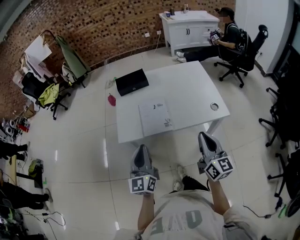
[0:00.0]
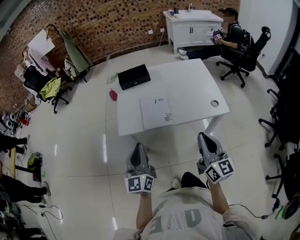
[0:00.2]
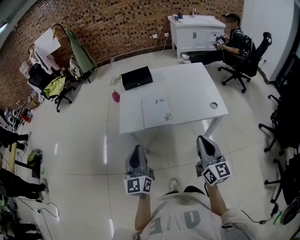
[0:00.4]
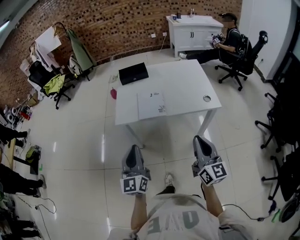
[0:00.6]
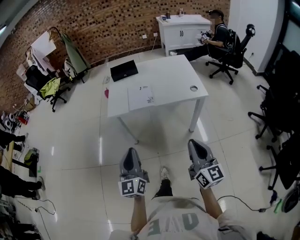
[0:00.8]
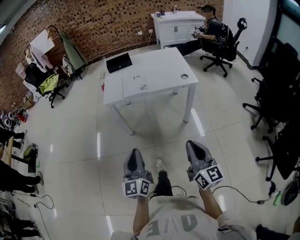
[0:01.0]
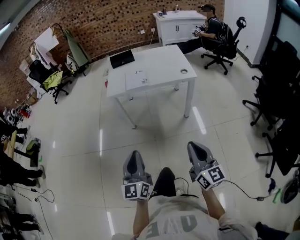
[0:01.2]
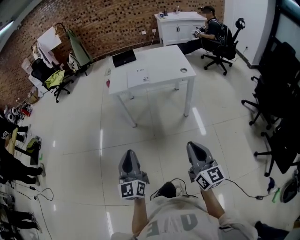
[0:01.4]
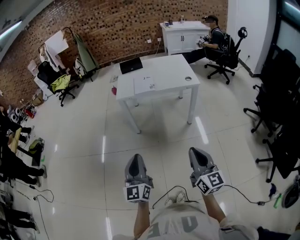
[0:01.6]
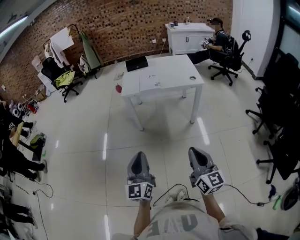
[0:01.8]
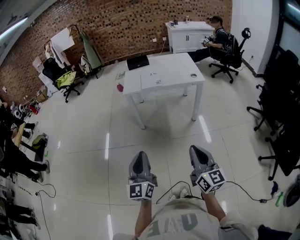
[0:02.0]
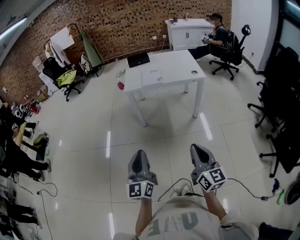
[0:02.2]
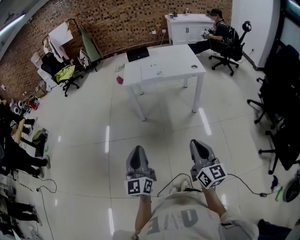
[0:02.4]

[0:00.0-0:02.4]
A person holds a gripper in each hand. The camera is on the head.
0:00.0 to 0:01.2: Both grippers are carried backward, roughly 40 cm.
0:01.2 to 0:02.4: The grippers both shift backward and to the left by approximately 15 cm.

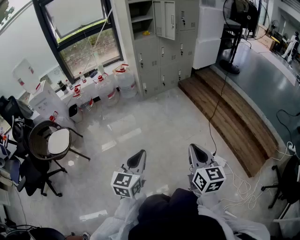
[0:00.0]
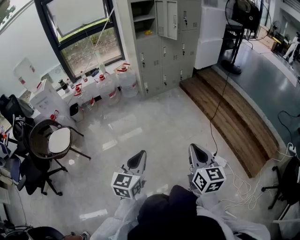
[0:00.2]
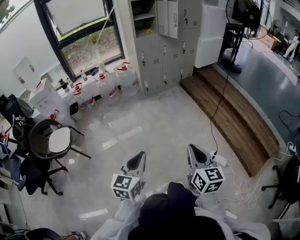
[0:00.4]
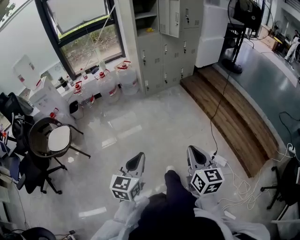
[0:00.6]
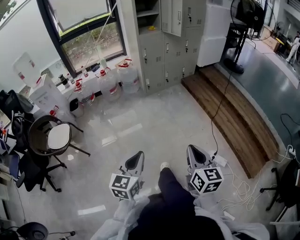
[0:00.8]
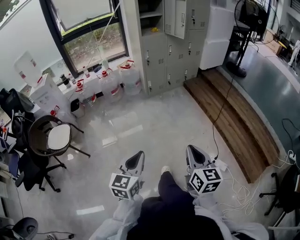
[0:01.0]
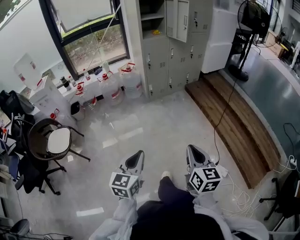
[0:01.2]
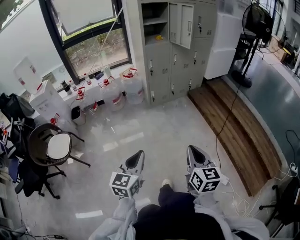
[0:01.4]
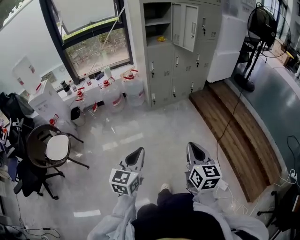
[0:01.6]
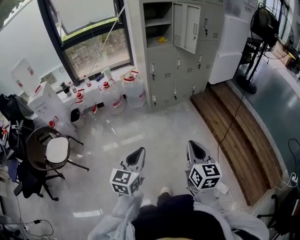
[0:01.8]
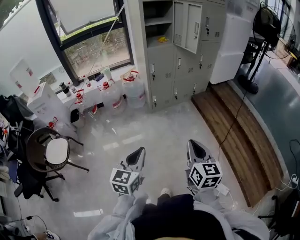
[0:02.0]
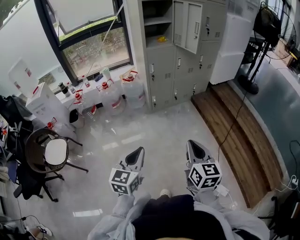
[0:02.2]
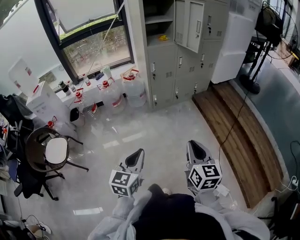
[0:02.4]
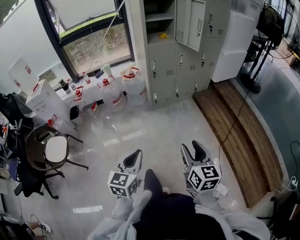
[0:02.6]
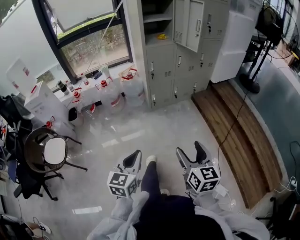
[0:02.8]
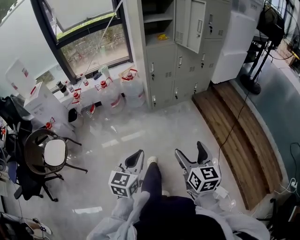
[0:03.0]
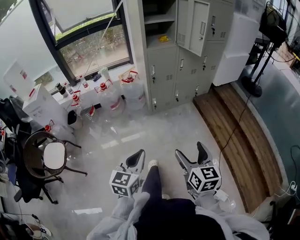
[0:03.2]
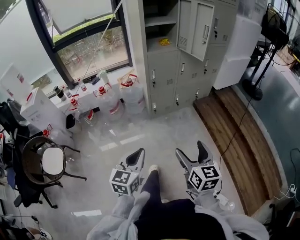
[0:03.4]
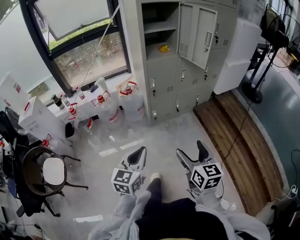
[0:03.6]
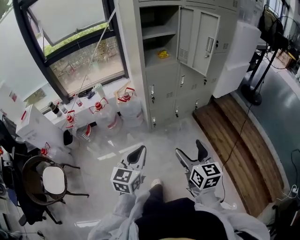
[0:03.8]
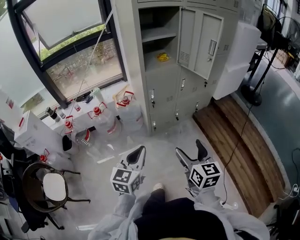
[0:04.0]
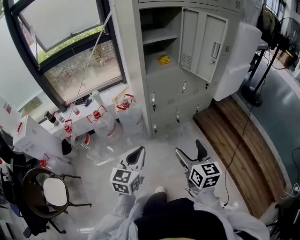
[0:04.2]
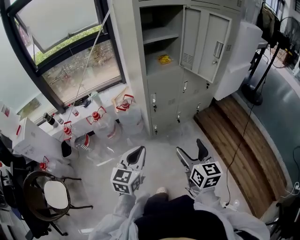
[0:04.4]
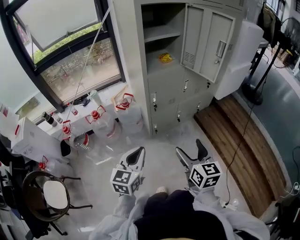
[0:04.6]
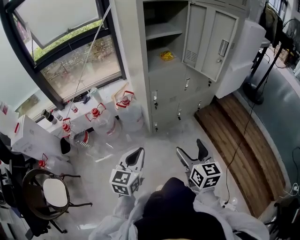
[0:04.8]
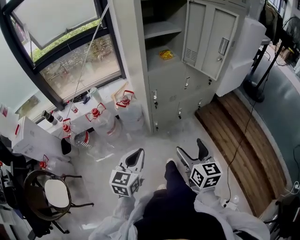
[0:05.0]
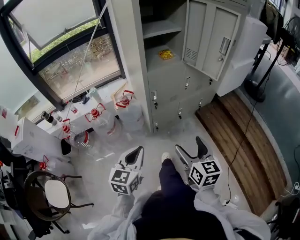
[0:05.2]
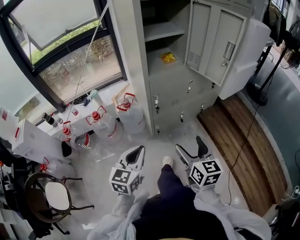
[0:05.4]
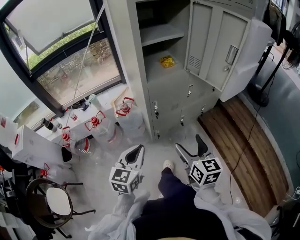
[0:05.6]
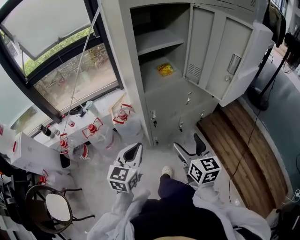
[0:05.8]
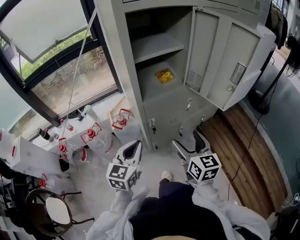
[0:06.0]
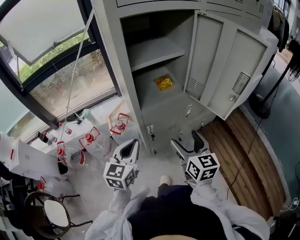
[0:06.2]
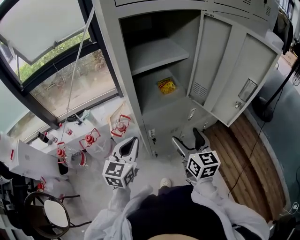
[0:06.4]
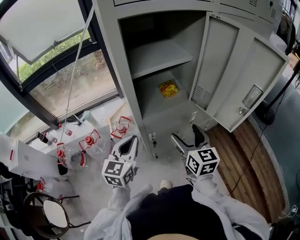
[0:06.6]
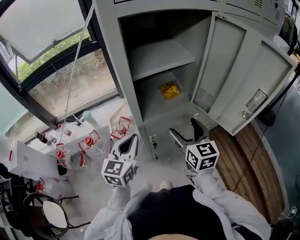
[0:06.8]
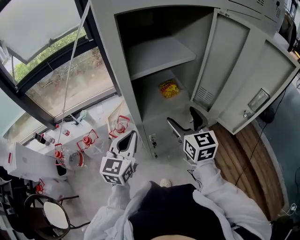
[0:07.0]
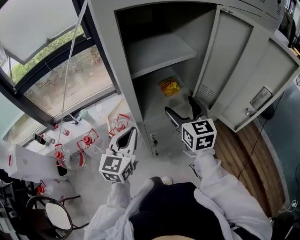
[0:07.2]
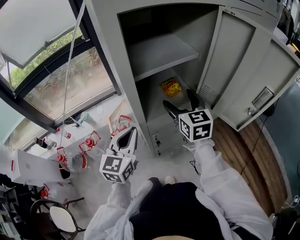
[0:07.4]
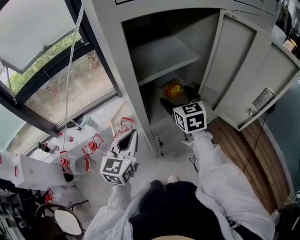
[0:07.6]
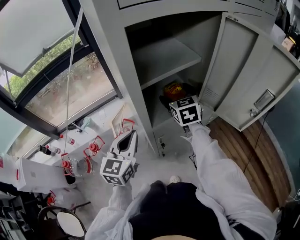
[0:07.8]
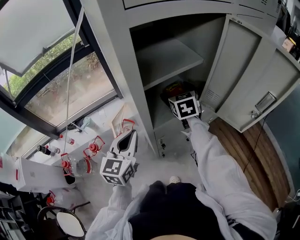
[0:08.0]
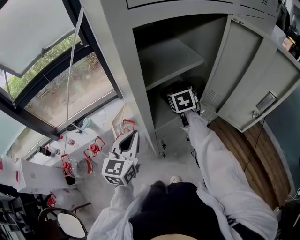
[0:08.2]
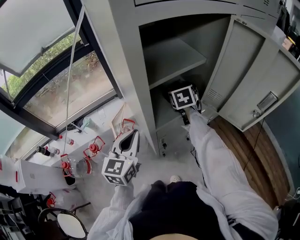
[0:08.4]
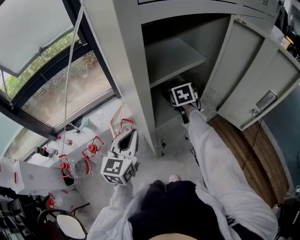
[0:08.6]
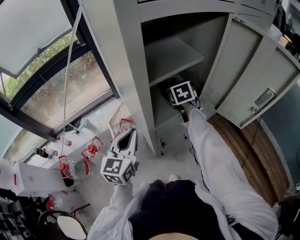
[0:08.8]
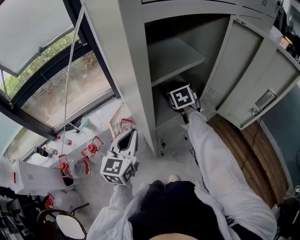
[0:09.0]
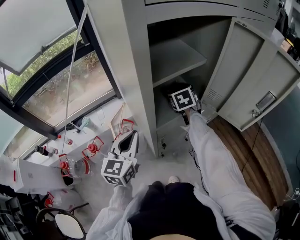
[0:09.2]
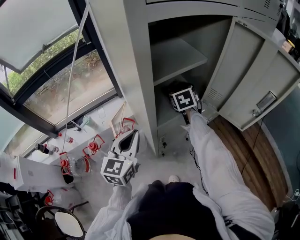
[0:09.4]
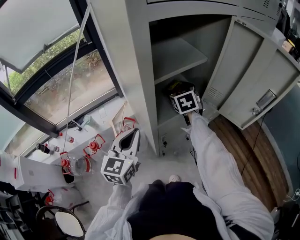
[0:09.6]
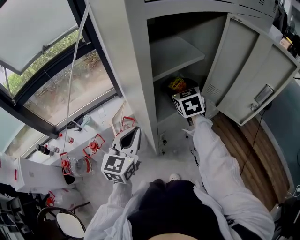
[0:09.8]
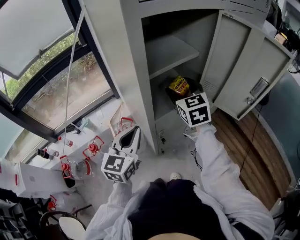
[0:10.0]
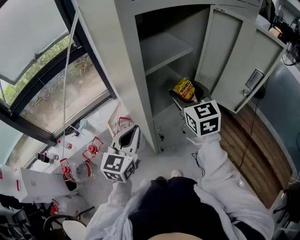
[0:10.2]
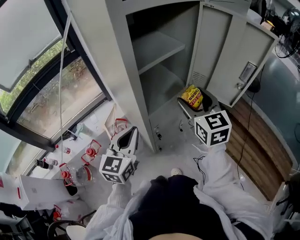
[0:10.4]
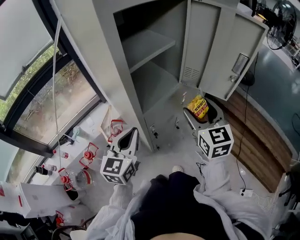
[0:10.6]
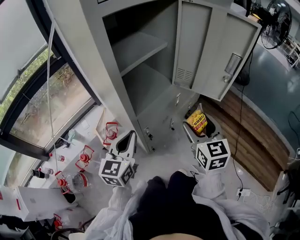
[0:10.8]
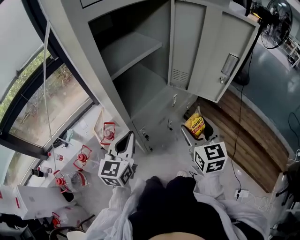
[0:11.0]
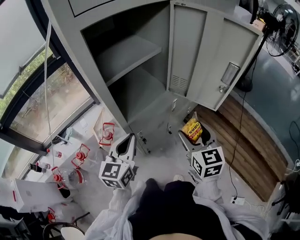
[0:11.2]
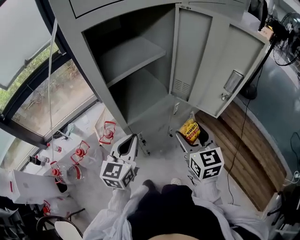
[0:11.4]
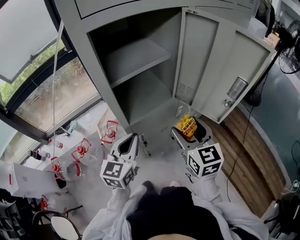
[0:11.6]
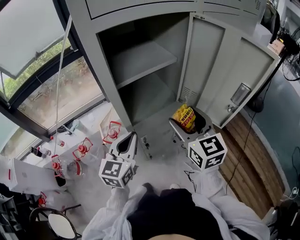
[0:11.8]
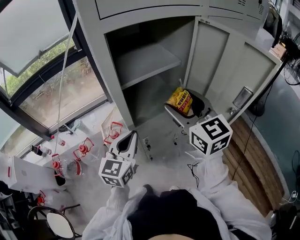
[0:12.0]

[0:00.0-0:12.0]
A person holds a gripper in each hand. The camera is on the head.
0:00.0 to 0:01.6: Both grippers move forward, approximately 20 cm.
0:01.6 to 0:03.0: Both grippers travel together forward, about 10 cm. The right gripper opens its fingers.
0:03.0 to 0:04.4: Both grippers travel together forward, about 35 cm.
0:04.4 to 0:06.0: The two grippers go approximately 25 cm forward.
0:06.0 to 0:07.6: The right gripper heads forward, covering some 30 cm, while the left gripper is displaced forward by roughly 15 cm.
0:07.6 to 0:09.0: The right gripper shifts approximately 10 cm forward and downward, and rotates approximately 20 degrees.
0:09.0 to 0:10.4: The right gripper heads backward, upward and to the right, covering approximately 25 cm, and changes its angle by roughly 30 degrees. Meanwhile the left gripper changes place by some 5 cm.
0:10.4 to 0:12.0: The left gripper goes approximately 5 cm to the right. The right gripper shifts about 5 cm upward, and turns by roughly 20 degrees.

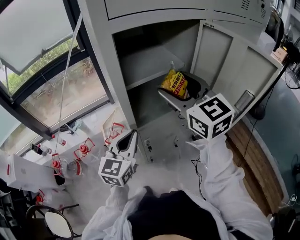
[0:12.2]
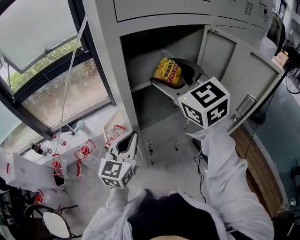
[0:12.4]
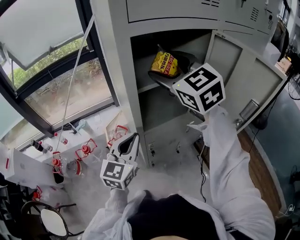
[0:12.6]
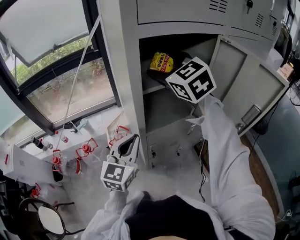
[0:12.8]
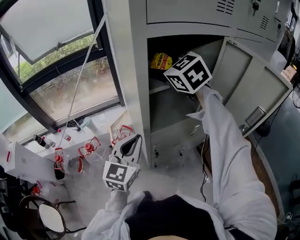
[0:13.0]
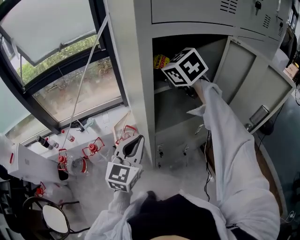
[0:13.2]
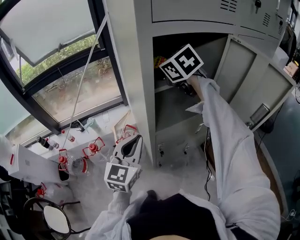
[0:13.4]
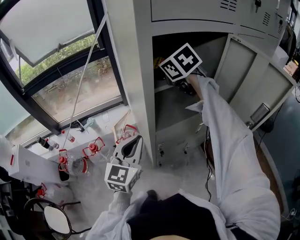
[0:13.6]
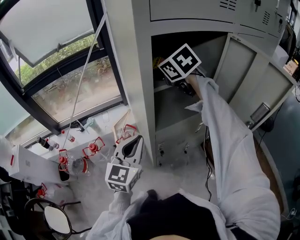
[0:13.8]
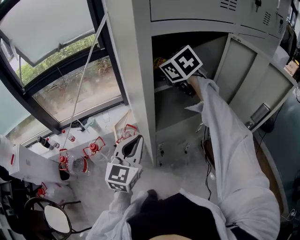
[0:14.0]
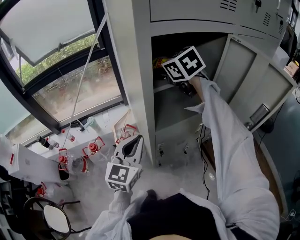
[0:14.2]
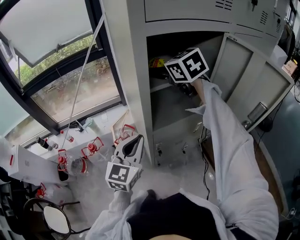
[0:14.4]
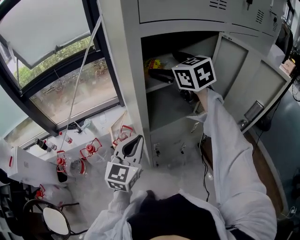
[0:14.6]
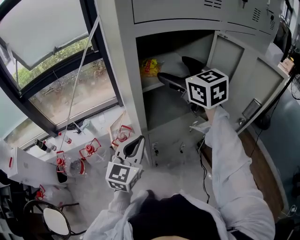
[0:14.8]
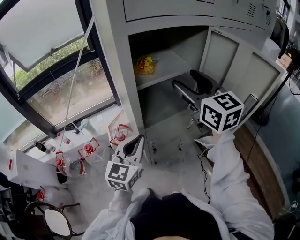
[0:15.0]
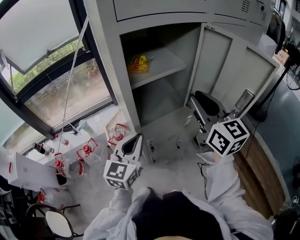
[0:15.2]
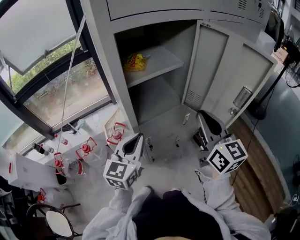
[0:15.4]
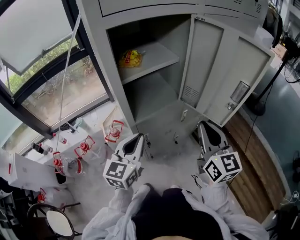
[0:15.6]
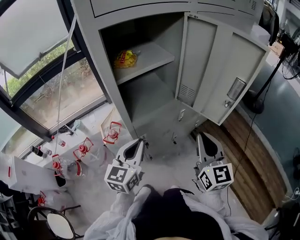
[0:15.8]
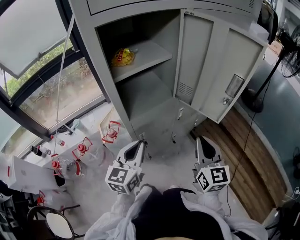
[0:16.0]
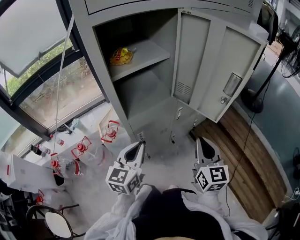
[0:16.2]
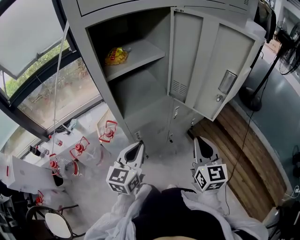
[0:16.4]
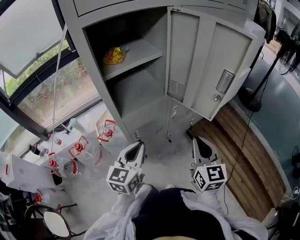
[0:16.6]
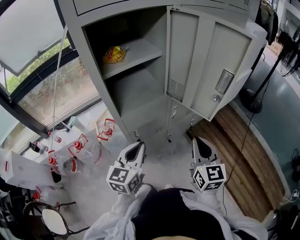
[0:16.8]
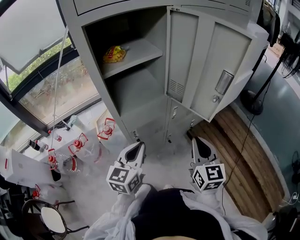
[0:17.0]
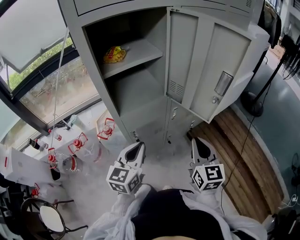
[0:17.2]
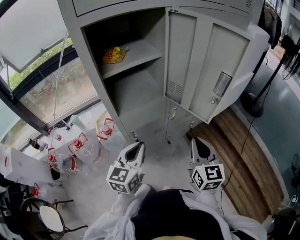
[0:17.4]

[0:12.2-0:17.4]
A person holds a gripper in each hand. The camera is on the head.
0:12.2 to 0:14.0: The right gripper goes some 20 cm forward and to the left, and rotates roughly 30 degrees, while the left gripper shifts by roughly 5 cm.
0:14.0 to 0:15.6: The left gripper moves to the right, approximately 10 cm, while the right gripper travels backward and to the right by some 35 cm, turns by some 50 degrees, and closes its fingers.
0:15.6 to 0:17.4: The left gripper heads to the right and downward, covering approximately 10 cm. Meanwhile the right gripper is displaced downward and to the right by approximately 10 cm.

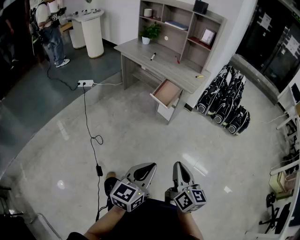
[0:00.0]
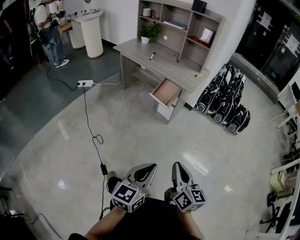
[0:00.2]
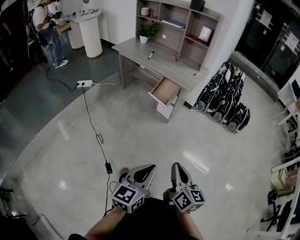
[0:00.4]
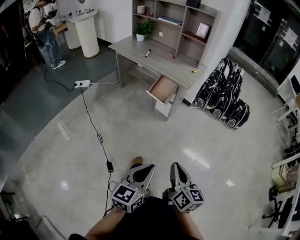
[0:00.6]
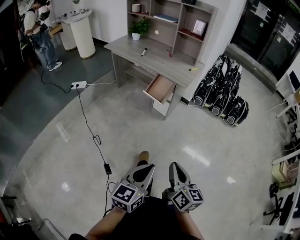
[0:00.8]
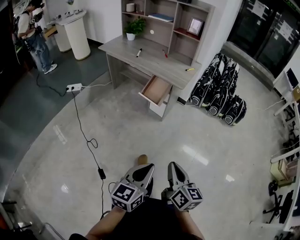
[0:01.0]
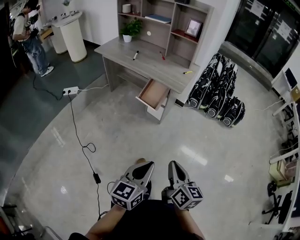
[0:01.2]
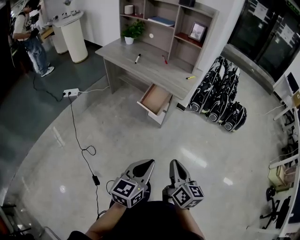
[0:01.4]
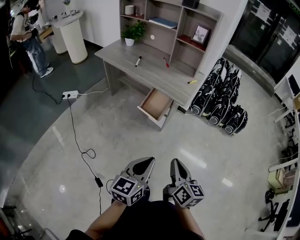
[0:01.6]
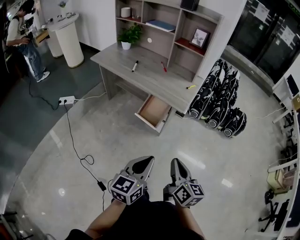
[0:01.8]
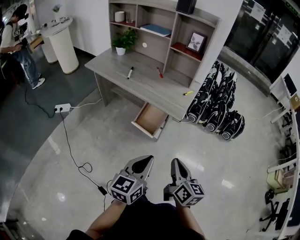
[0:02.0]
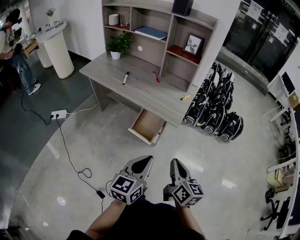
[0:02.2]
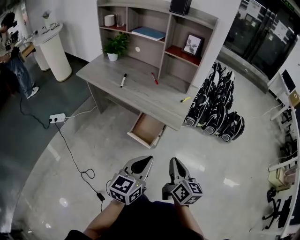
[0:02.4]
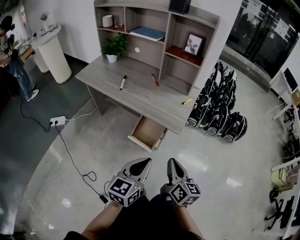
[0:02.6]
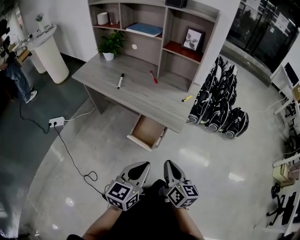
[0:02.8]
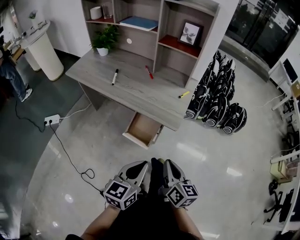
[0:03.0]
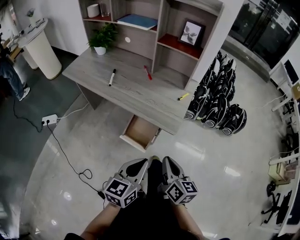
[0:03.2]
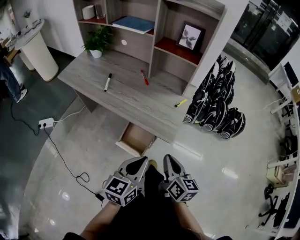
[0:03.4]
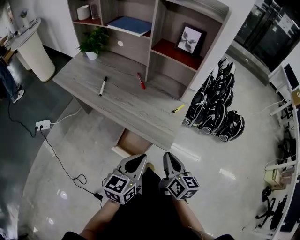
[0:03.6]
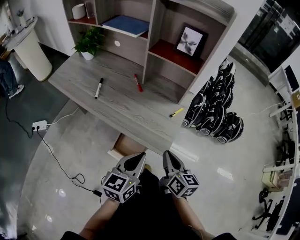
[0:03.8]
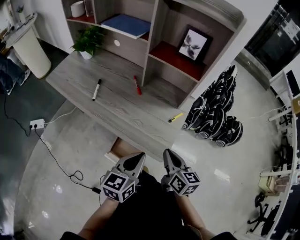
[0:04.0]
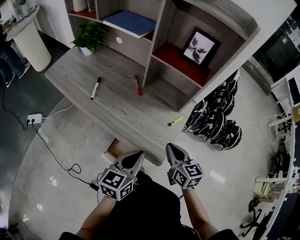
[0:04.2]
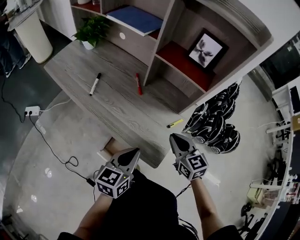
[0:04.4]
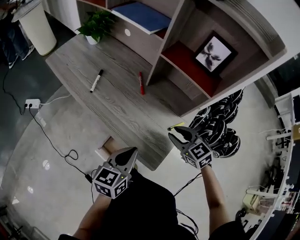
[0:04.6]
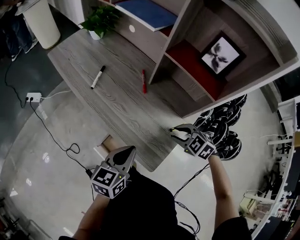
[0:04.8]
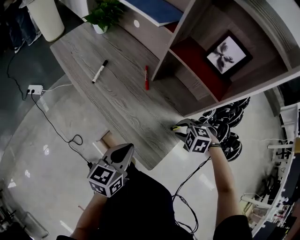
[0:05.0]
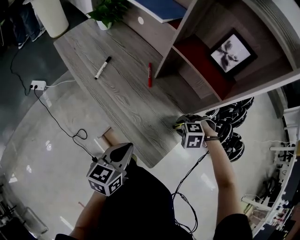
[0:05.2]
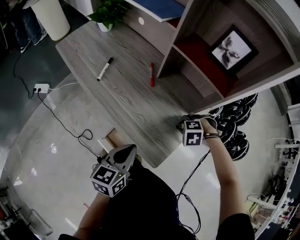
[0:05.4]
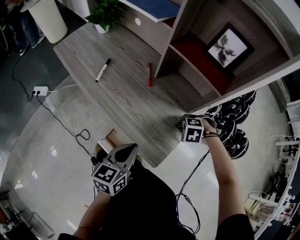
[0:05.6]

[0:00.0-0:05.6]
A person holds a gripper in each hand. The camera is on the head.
0:00.0 to 0:01.4: Both grippers travel together forward, approximately 15 cm.
0:01.4 to 0:02.8: Both grippers travel together forward, roughly 25 cm.
0:02.8 to 0:04.2: Both grippers move forward, some 25 cm. The right gripper turns by roughly 20 degrees.
0:04.2 to 0:05.6: The right gripper travels downward by about 15 cm, and tips its fingers downward by roughly 60 degrees.
